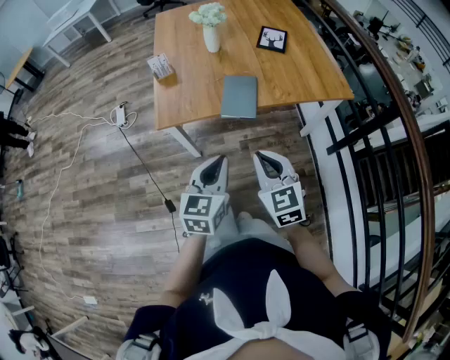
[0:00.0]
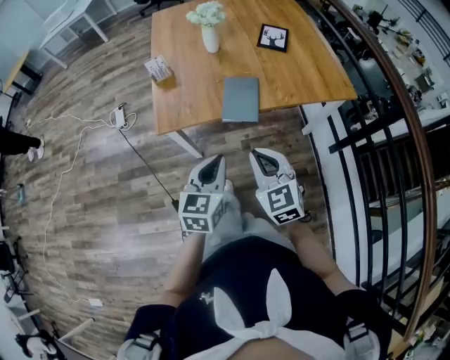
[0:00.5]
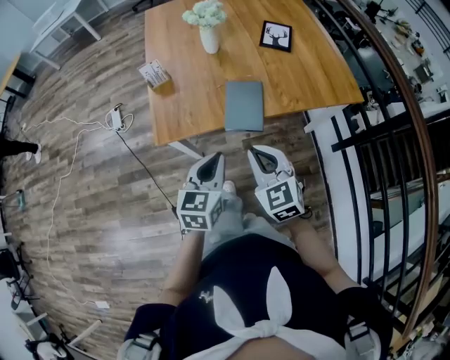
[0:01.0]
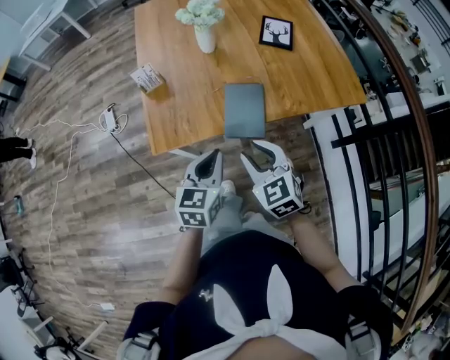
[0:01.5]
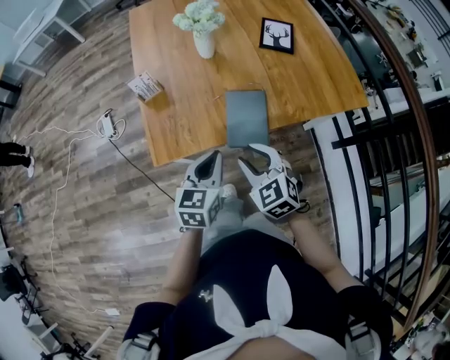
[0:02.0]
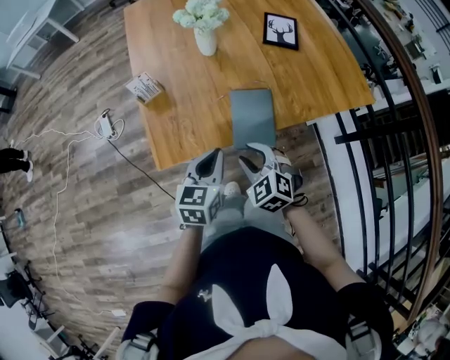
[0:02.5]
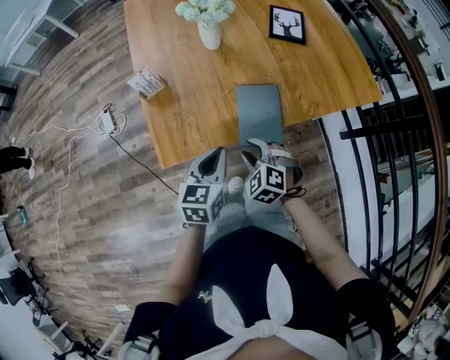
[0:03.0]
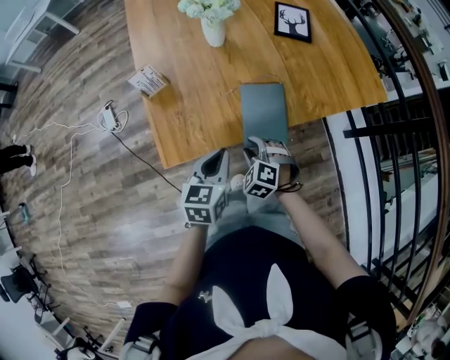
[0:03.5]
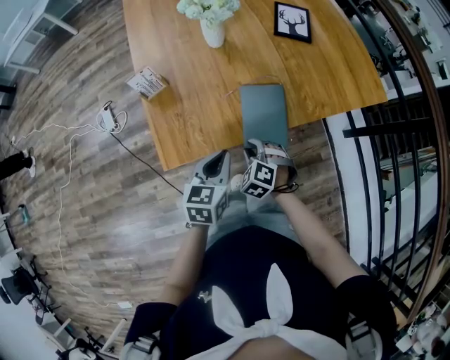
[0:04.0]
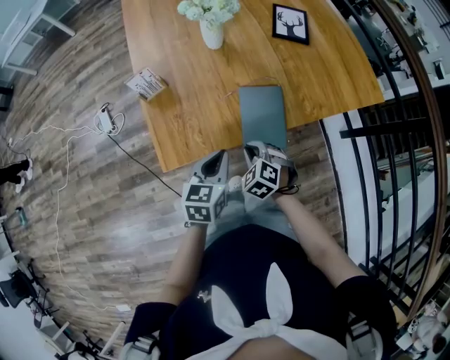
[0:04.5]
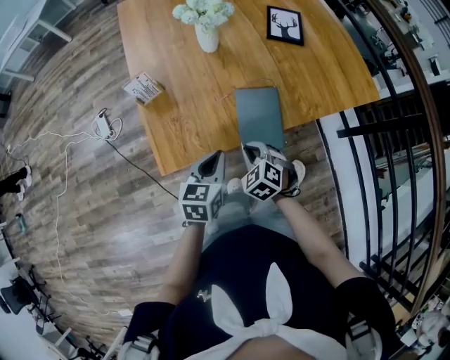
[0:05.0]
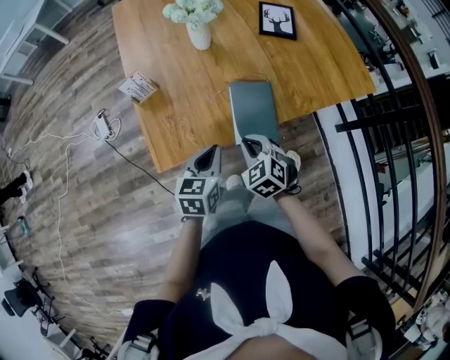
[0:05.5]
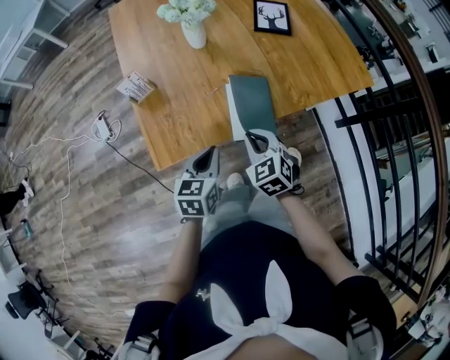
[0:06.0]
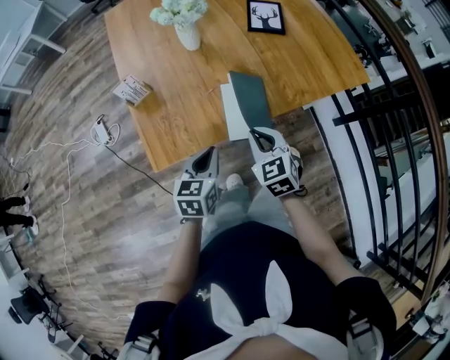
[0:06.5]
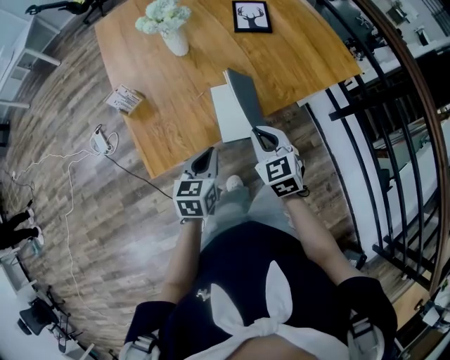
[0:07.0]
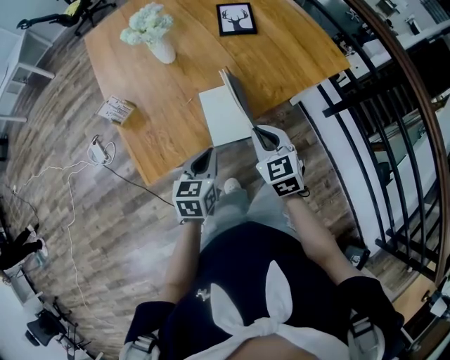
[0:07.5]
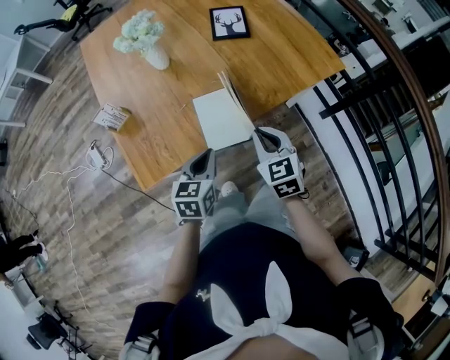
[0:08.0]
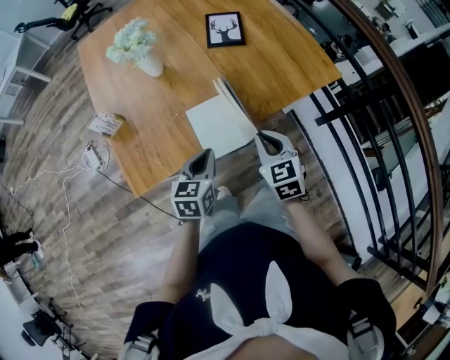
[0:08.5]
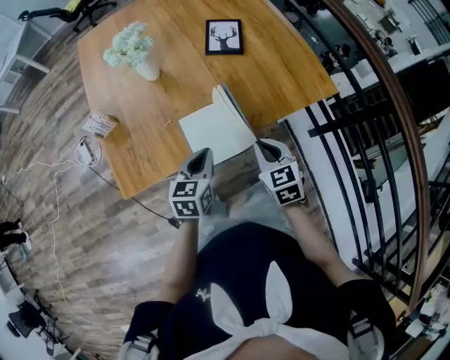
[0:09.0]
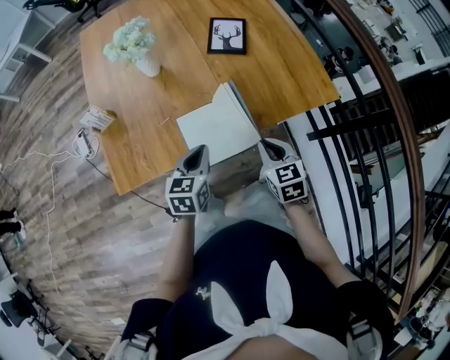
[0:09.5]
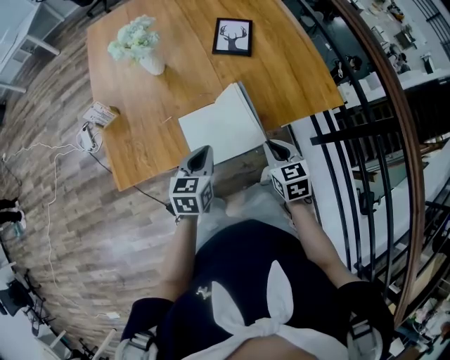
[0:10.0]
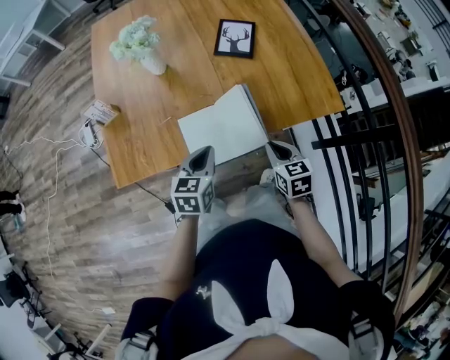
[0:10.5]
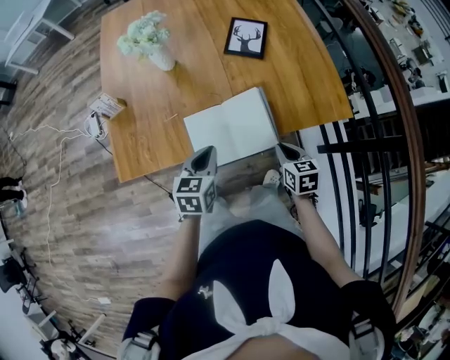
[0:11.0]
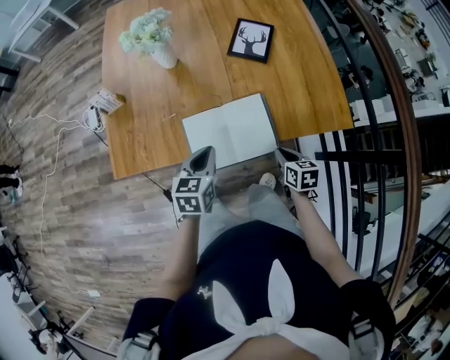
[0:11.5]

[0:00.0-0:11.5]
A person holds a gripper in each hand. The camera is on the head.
0:00.0 to 0:02.0: The two grippers go roughly 20 cm forward. The right gripper opens its fingers.
0:02.0 to 0:04.0: The right gripper travels downward by roughly 20 cm, and swivels some 30 degrees. Meanwhile the left gripper goes roughly 5 cm downward.
0:04.0 to 0:06.0: The right gripper goes about 10 cm upward, and swivels roughly 30 degrees.
0:06.0 to 0:07.5: The two grippers go some 10 cm to the right.
0:07.5 to 0:09.5: The right gripper travels to the right and forward by about 15 cm, while the left gripper heads forward and to the right, covering about 15 cm.
0:09.5 to 0:11.5: The right gripper moves downward and to the right, approximately 15 cm, and changes its angle by about 20 degrees.

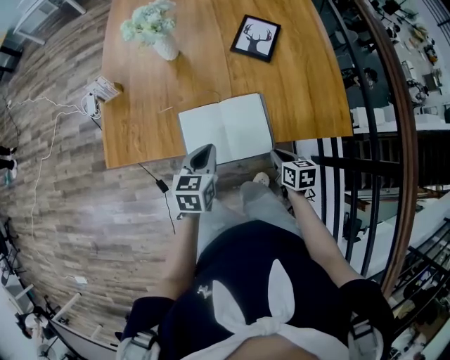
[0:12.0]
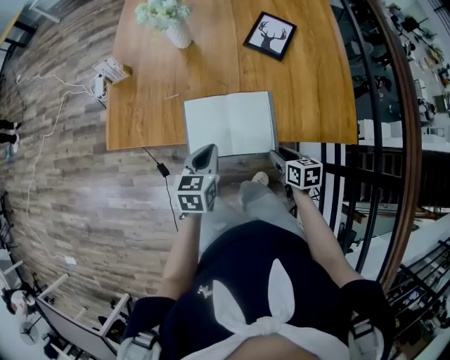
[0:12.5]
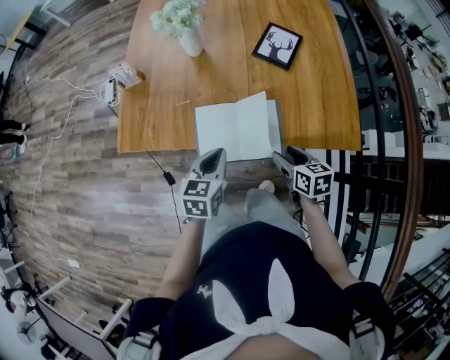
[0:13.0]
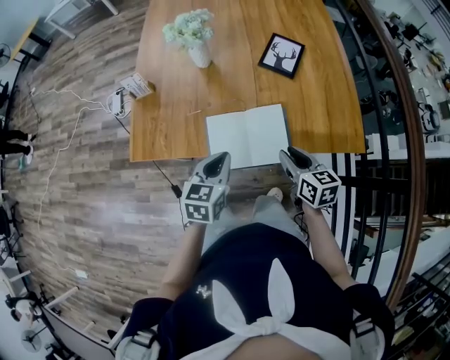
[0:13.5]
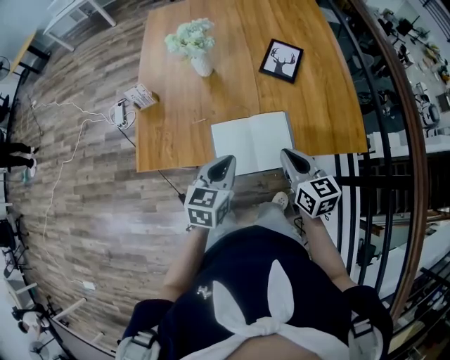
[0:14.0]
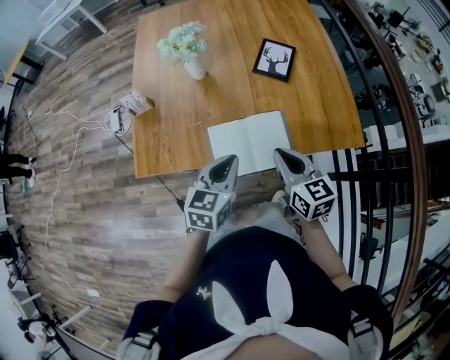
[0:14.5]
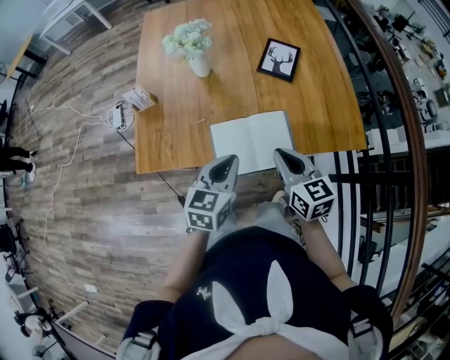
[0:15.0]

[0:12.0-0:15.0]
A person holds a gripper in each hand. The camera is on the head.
0:12.0 to 0:13.5: The left gripper shifts roughly 5 cm upward. The right gripper travels upward by approximately 15 cm, changes its angle by some 20 degrees, and opens its fingers.
0:13.5 to 0:15.0: The right gripper shifts about 10 cm upward and to the left, and closes its fingers.

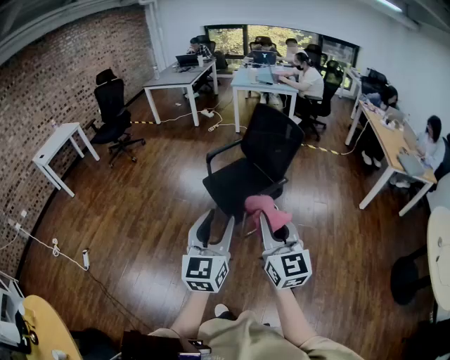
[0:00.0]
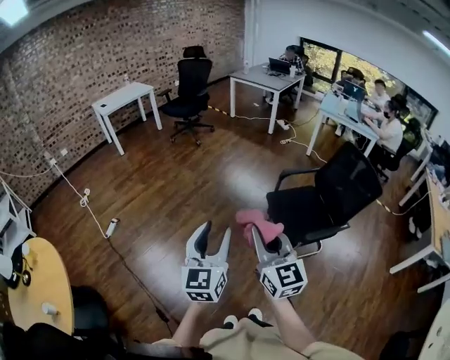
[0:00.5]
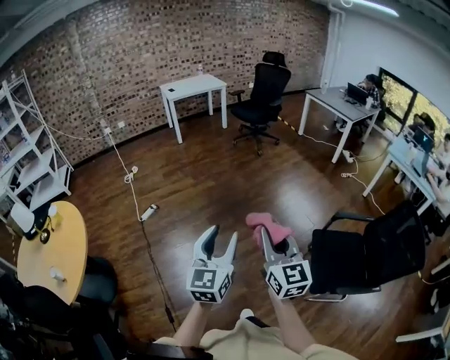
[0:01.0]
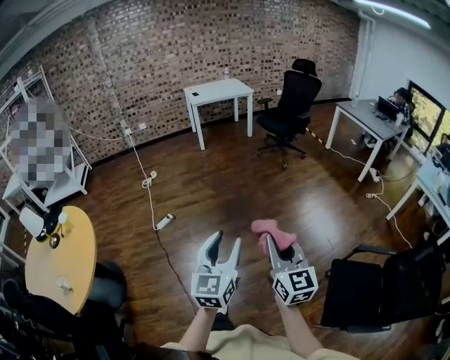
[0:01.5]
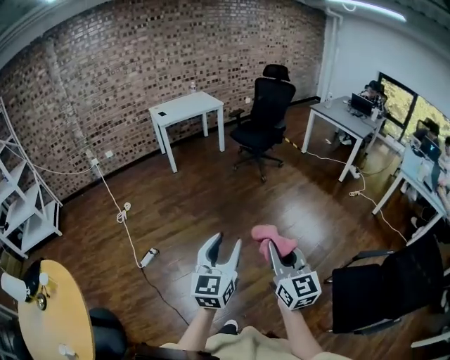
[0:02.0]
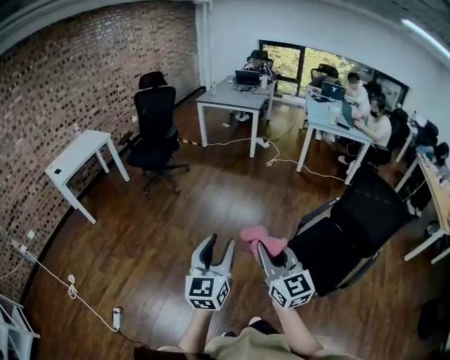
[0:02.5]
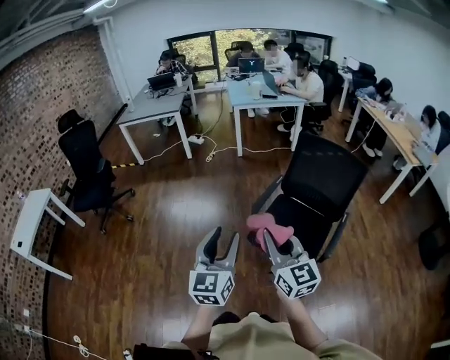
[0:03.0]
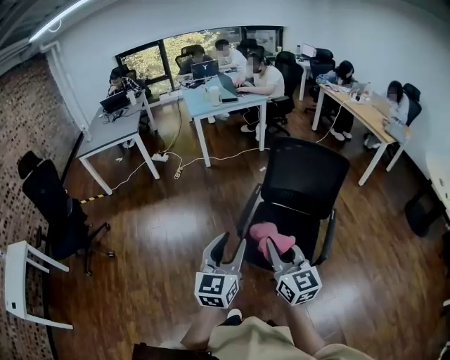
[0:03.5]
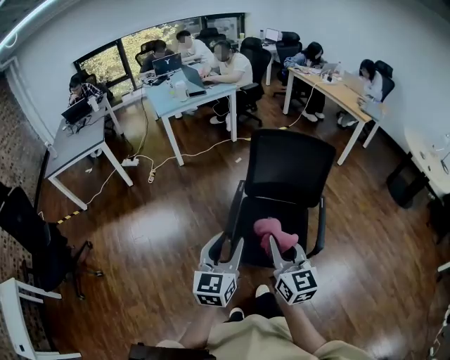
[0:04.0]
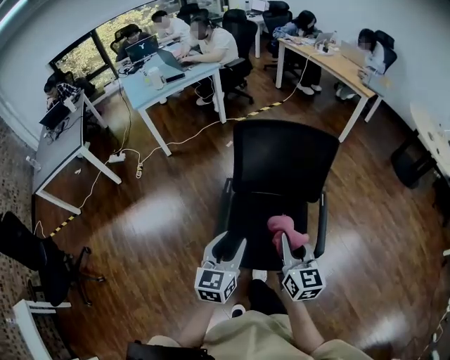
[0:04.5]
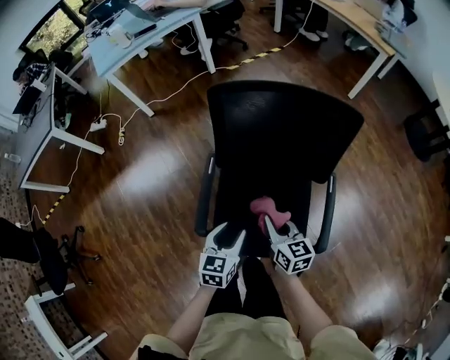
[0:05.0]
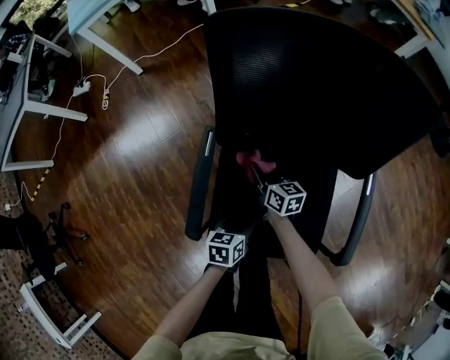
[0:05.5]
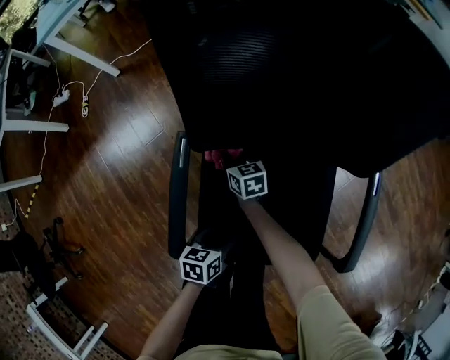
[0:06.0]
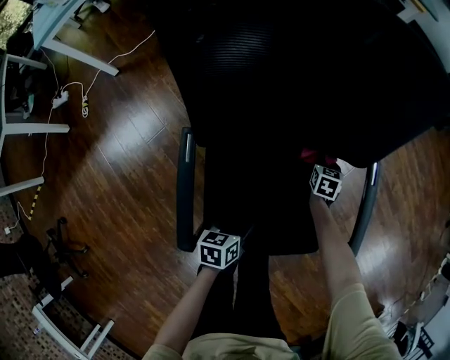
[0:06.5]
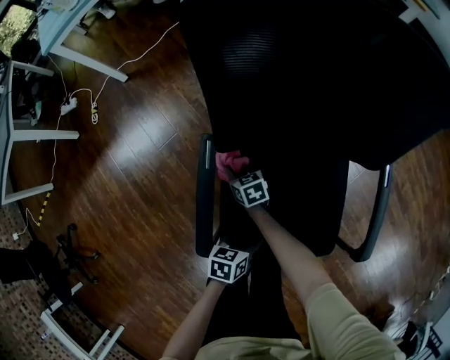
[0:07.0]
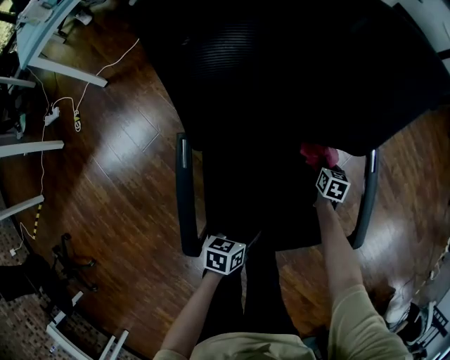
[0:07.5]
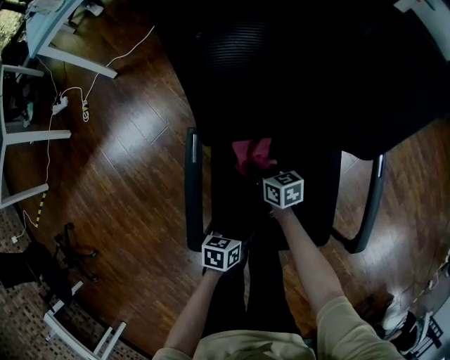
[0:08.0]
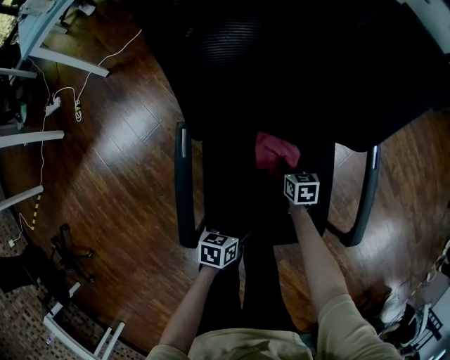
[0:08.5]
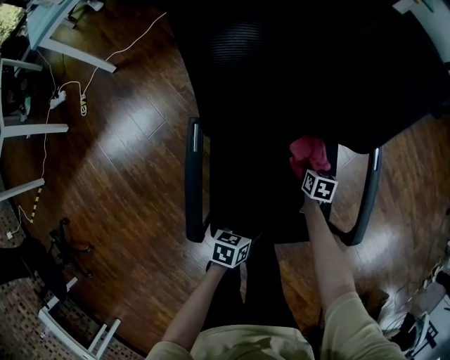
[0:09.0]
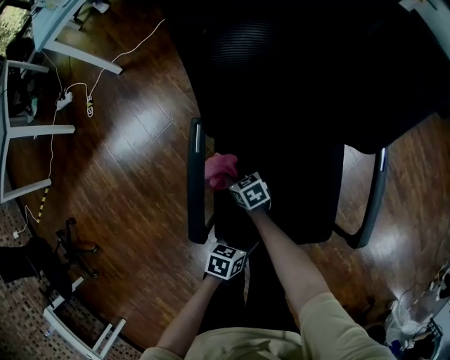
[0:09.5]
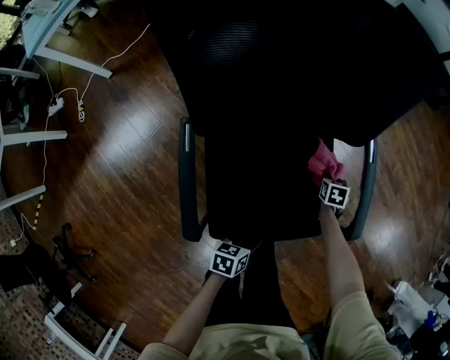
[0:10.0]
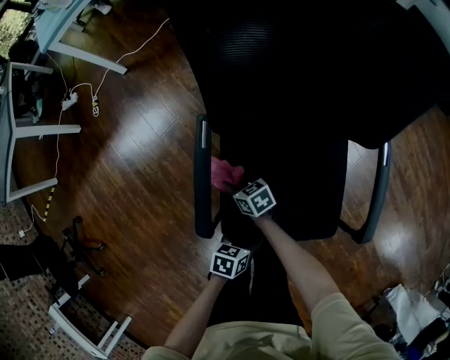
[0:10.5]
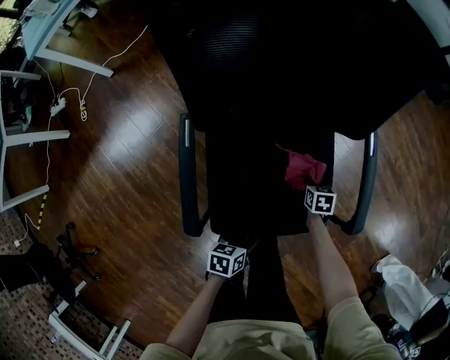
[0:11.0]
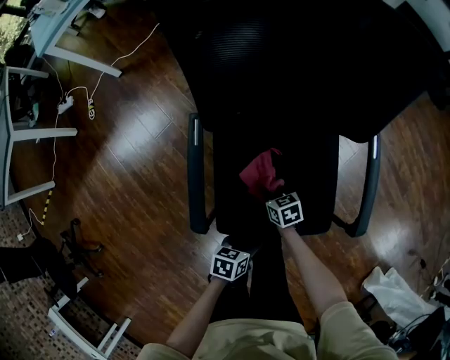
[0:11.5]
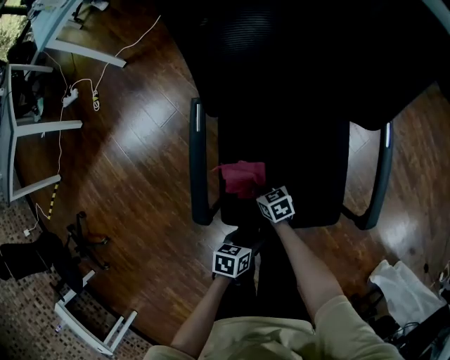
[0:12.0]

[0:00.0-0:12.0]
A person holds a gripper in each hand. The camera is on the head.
0:00.0 to 0:02.0: The pair of grippers is taken about 70 cm. The right gripper changes its angle by approximately 40 degrees. The left gripper turns by approximately 40 degrees.
0:02.0 to 0:04.0: The pair of grippers is taken about 60 cm. The left gripper rotates roughly 80 degrees, while the right gripper rotates about 80 degrees.
0:04.0 to 0:06.0: The left gripper shifts roughly 60 cm downward, and angles its fingers downward, by about 40 degrees, while the right gripper travels downward and forward by roughly 80 cm, and points its fingers some 30 degrees further downward.
0:08.0 to 0:10.0: The left gripper shifts by approximately 10 cm; the right gripper changes place by about 35 cm, and points its fingers roughly 30 degrees further downward.
0:10.0 to 0:12.0: The right gripper shifts by approximately 35 cm, and changes its angle by roughly 50 degrees. The left gripper changes place by some 5 cm.
